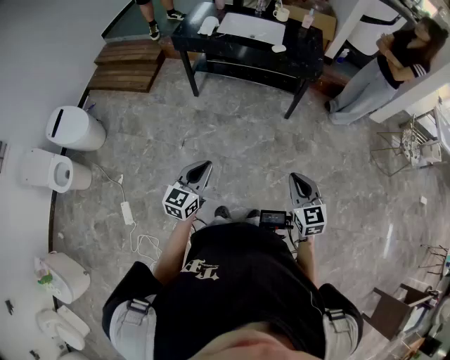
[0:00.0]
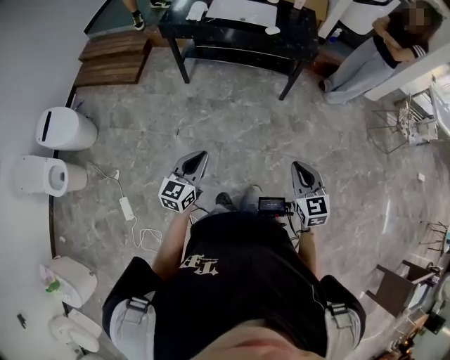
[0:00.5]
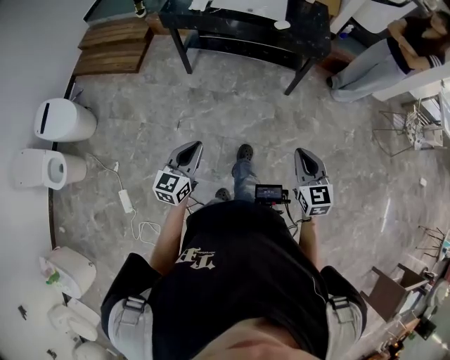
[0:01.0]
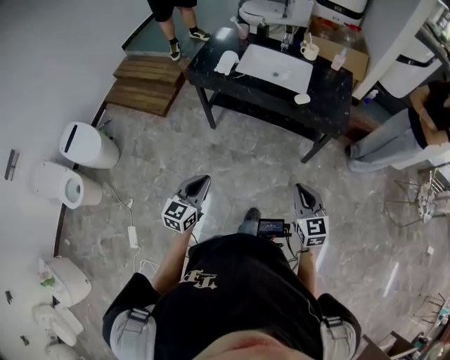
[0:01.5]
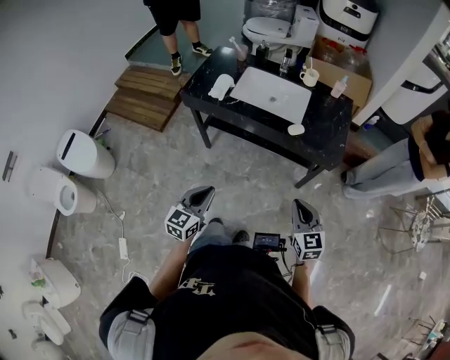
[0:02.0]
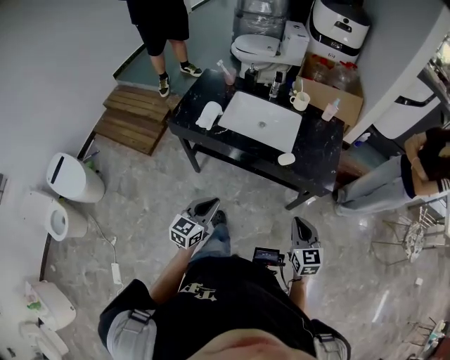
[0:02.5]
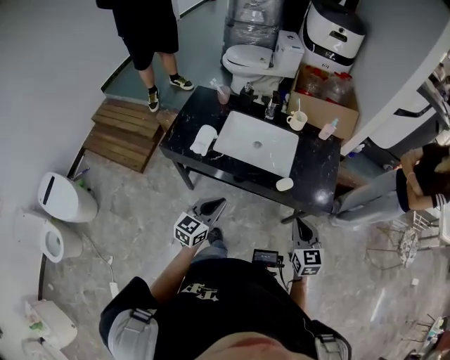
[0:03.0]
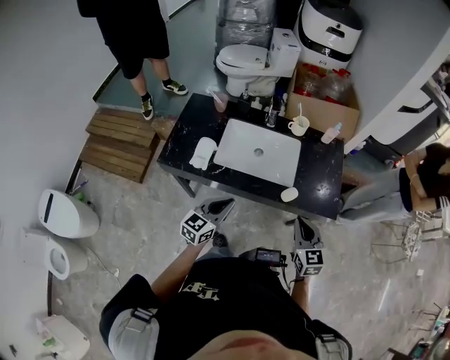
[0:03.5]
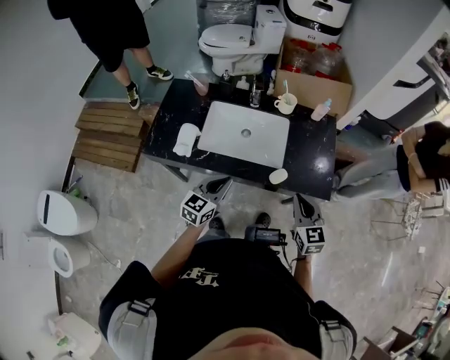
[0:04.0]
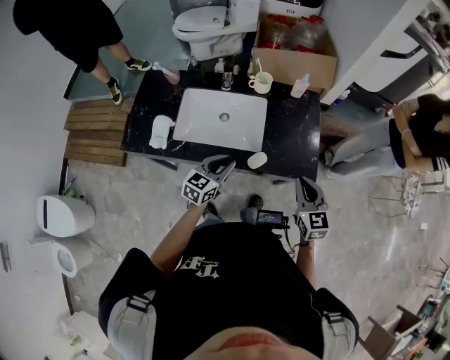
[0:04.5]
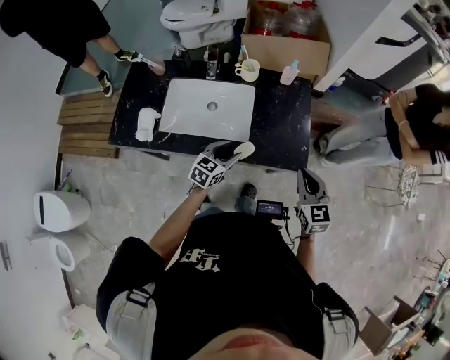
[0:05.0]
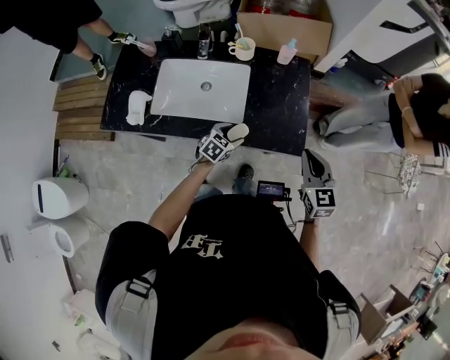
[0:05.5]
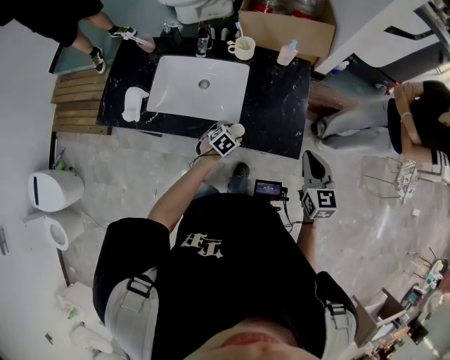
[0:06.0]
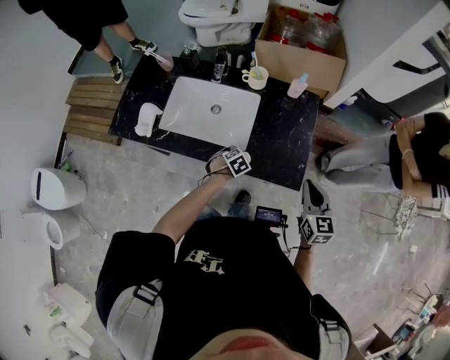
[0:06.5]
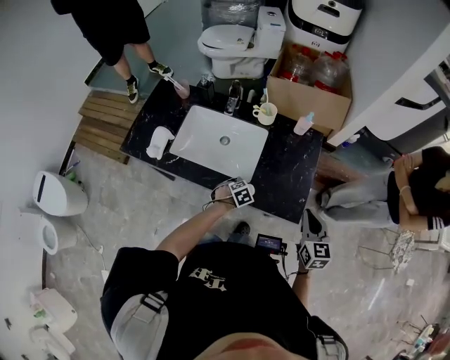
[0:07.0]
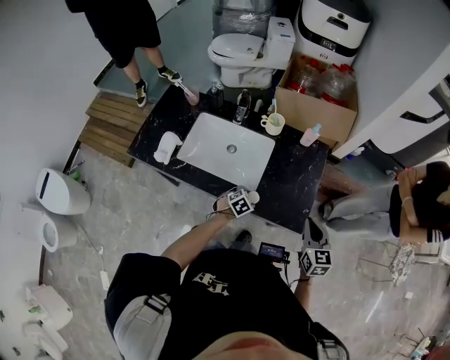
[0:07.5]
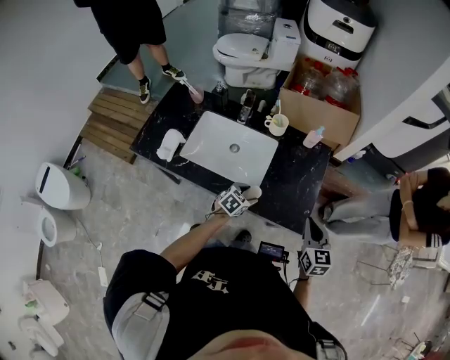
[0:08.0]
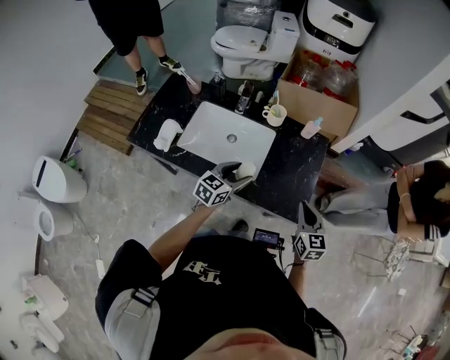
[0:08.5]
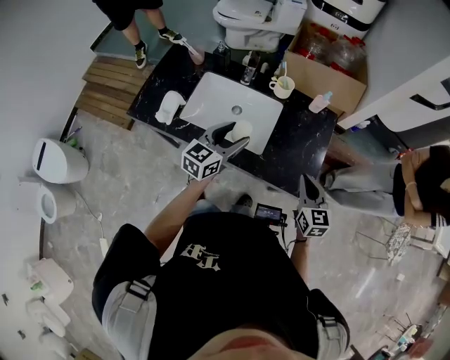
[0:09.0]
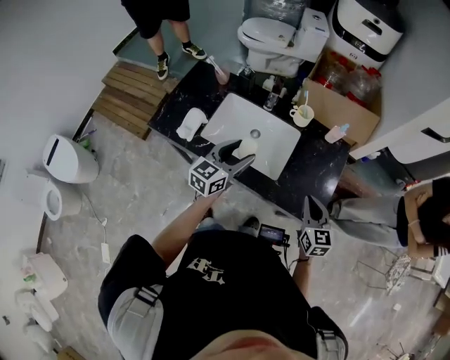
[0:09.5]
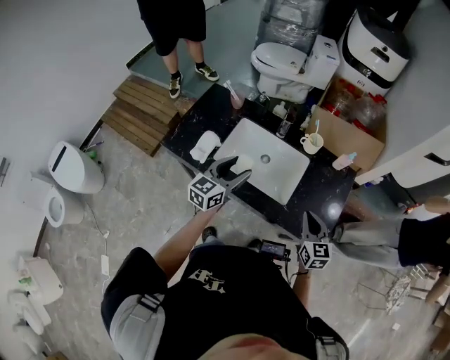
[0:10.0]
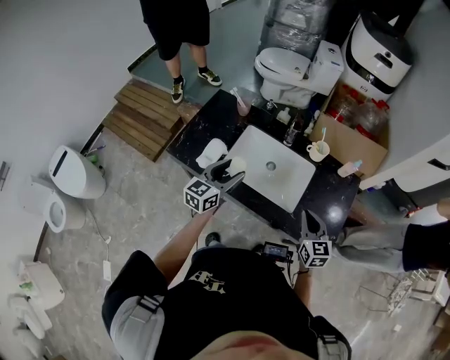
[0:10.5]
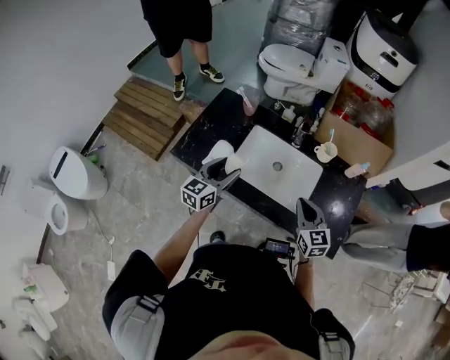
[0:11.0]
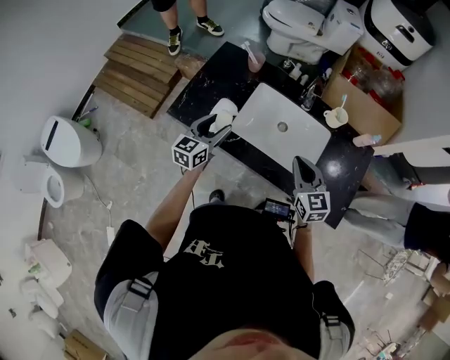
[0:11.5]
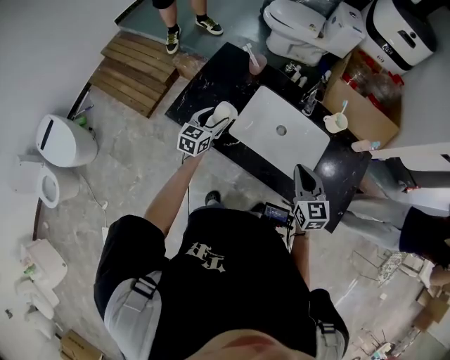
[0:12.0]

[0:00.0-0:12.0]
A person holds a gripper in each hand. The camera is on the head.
0:00.0 to 0:02.0: Both grippers travel together forward, roughly 40 cm.
0:02.0 to 0:04.0: Both grippers travel together forward, roughly 35 cm. The left gripper rotates about 20 degrees.
0:04.0 to 0:06.0: The right gripper goes some 25 cm to the right and forward; the left gripper is displaced downward, to the right and forward by approximately 35 cm, angles its fingers downward, by about 40 degrees, and opens.
0:06.0 to 0:08.0: The left gripper shifts approximately 5 cm upward.
0:08.0 to 0:10.0: The left gripper heads upward and to the left, covering roughly 35 cm, and points its fingers some 40 degrees further upward, while the right gripper goes approximately 15 cm to the left.
0:10.0 to 0:12.0: The right gripper is displaced to the left and forward by about 20 cm. Meanwhile the left gripper shifts about 30 cm to the left, downward and forward.

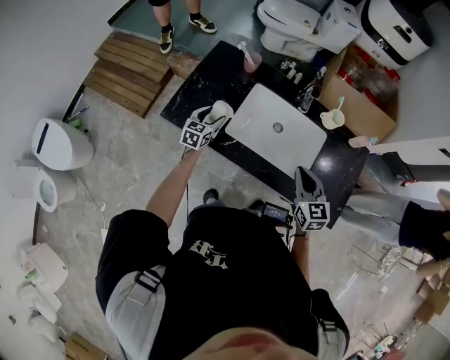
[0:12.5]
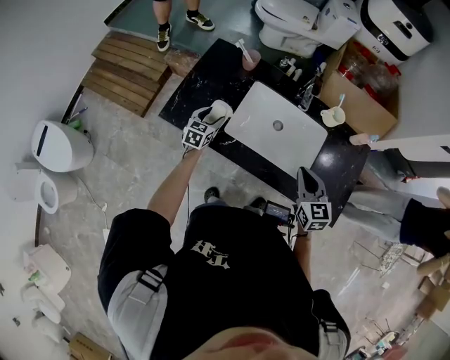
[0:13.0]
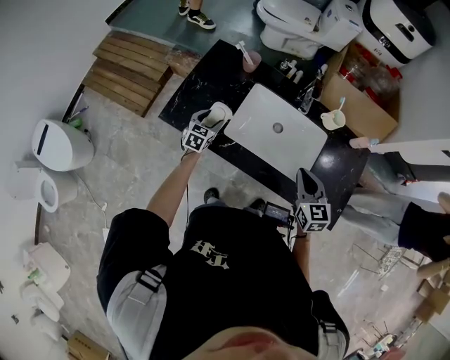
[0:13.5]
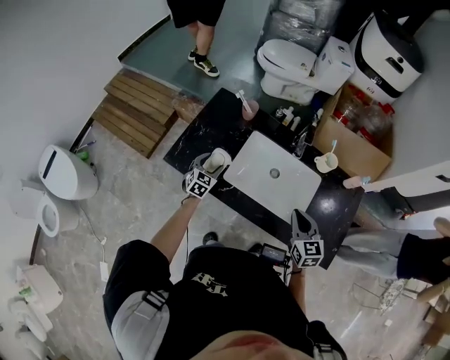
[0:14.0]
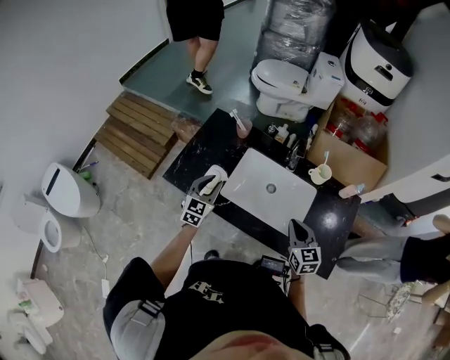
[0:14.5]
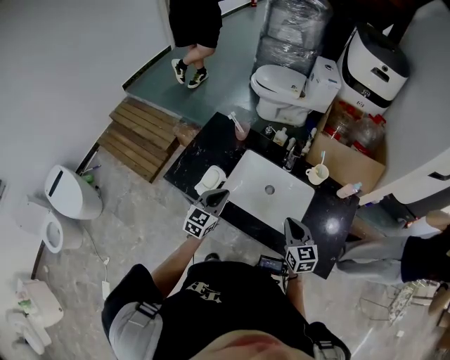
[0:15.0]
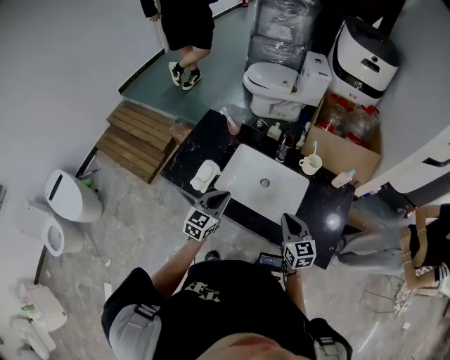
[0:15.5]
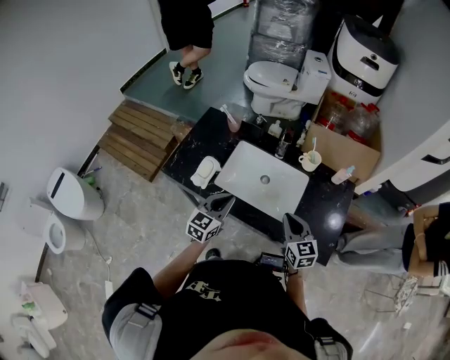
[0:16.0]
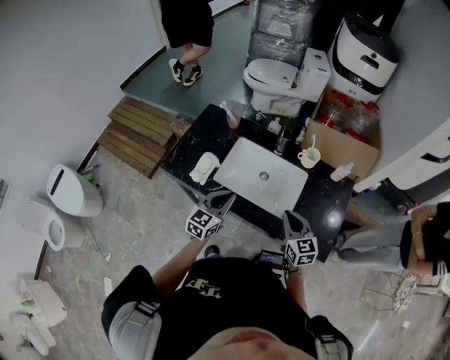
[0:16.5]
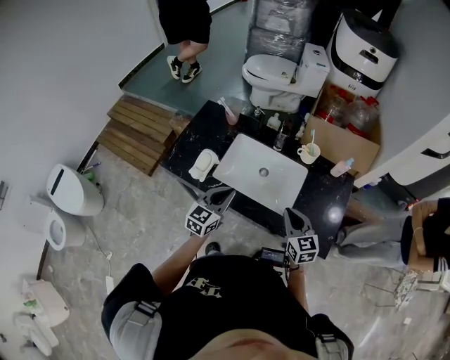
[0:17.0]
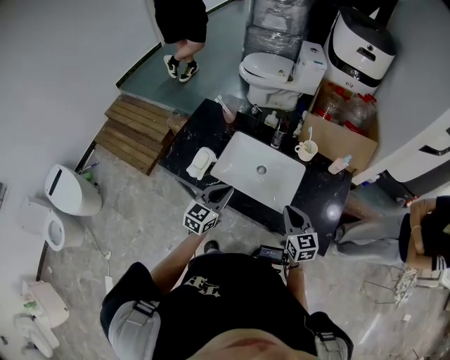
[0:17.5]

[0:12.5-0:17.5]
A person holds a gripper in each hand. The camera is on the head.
0:12.5 to 0:15.0: The left gripper goes about 20 cm upward, to the right and backward, and closes.
0:15.0 to 0:17.5: The left gripper shifts some 10 cm to the right and backward, while the right gripper is displaced backward by some 5 cm.

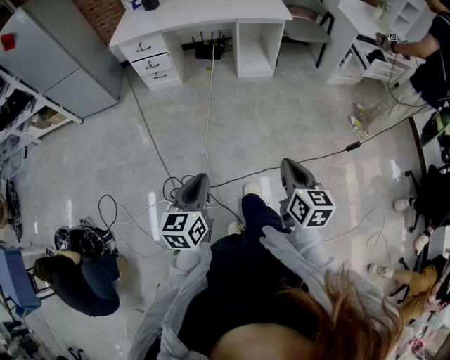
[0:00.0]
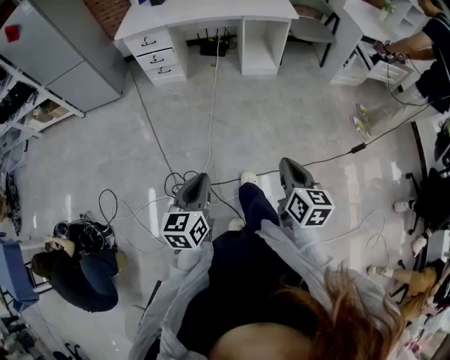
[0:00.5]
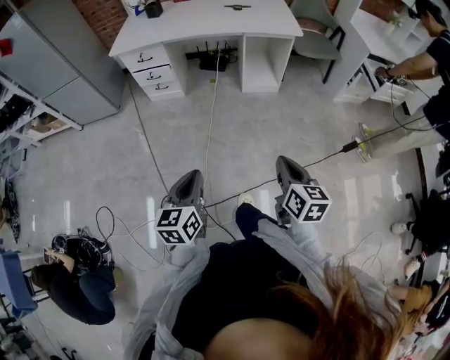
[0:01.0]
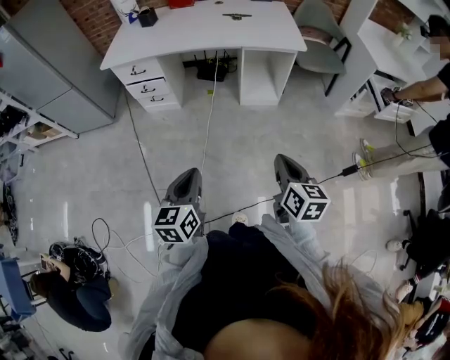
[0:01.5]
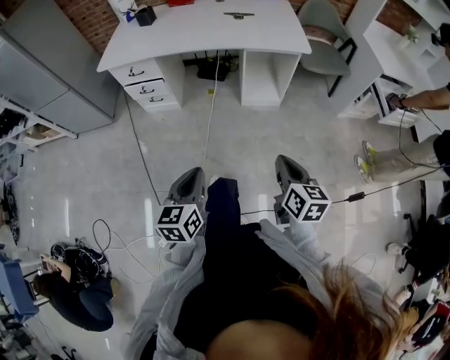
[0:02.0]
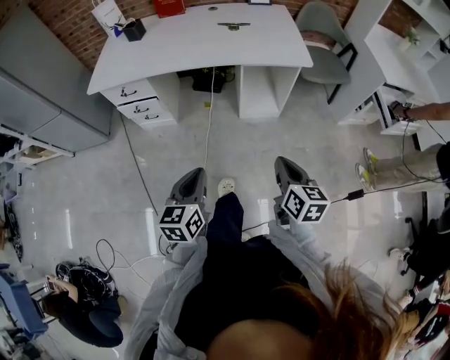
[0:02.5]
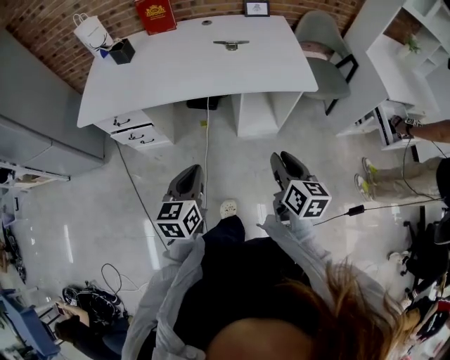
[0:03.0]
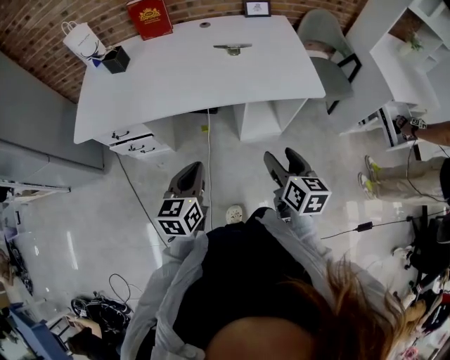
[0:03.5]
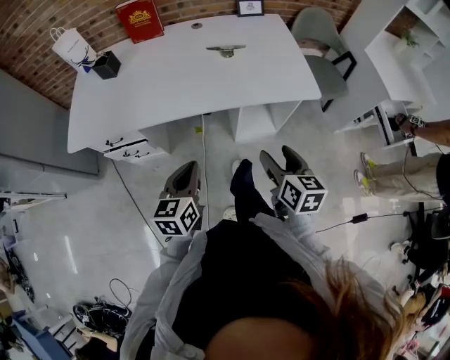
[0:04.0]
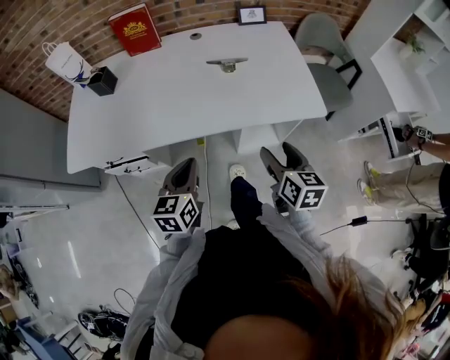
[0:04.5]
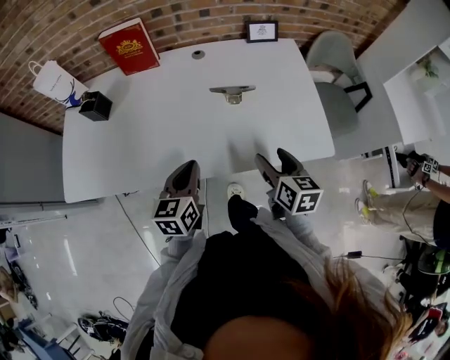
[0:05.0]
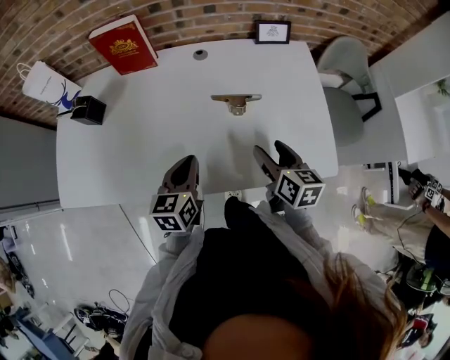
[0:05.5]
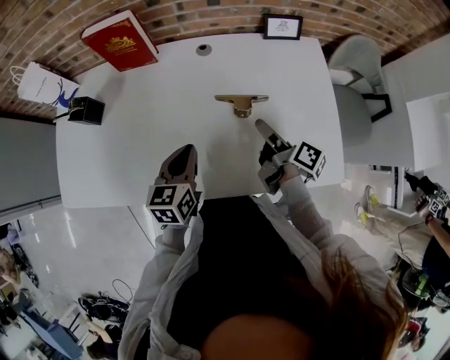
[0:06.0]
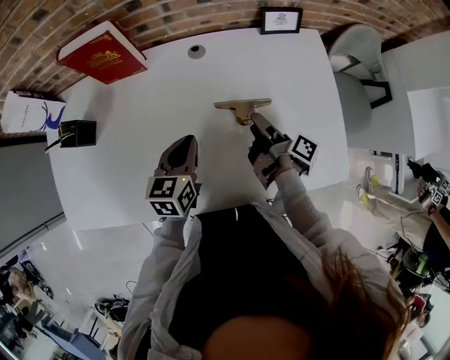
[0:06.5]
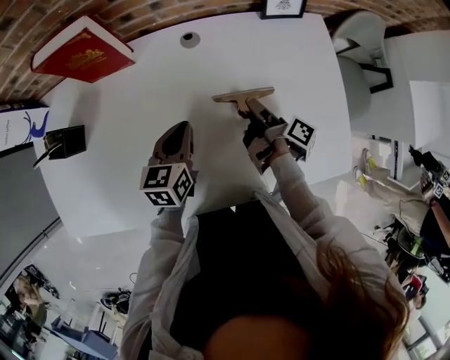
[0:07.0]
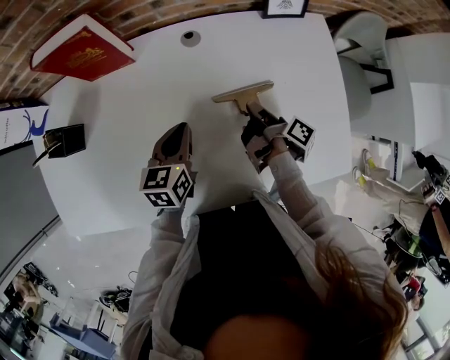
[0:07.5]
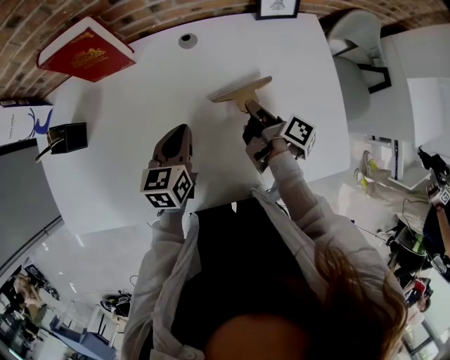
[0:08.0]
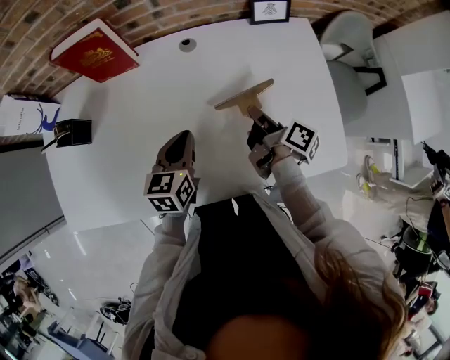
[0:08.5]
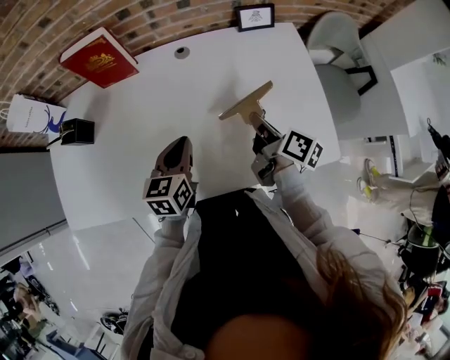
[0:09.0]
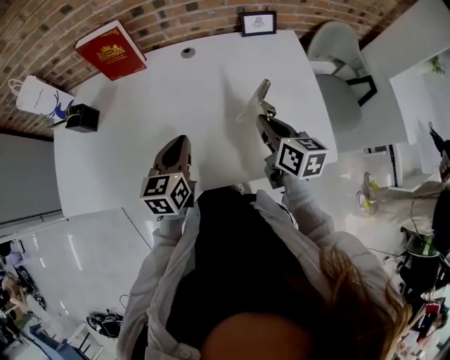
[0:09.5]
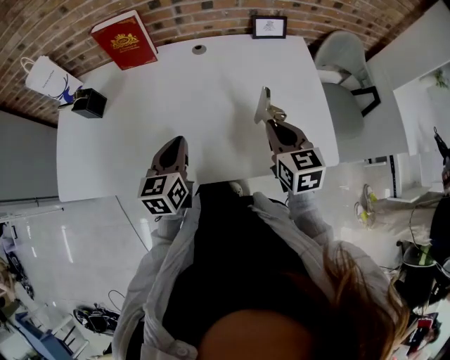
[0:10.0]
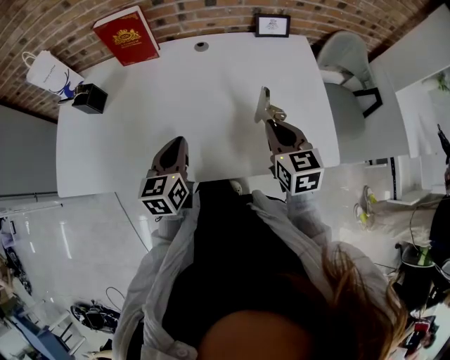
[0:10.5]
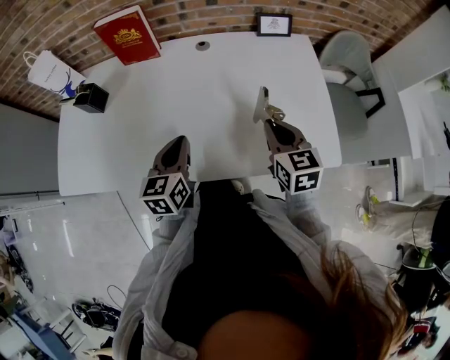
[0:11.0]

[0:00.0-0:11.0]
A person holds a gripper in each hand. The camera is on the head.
0:00.0 to 0:02.0: Both grippers travel together forward, some 30 cm.
0:02.0 to 0:03.5: Both grippers travel together forward, roughly 35 cm. The right gripper opens its fingers.
0:03.5 to 0:05.5: The grippers both shift forward by about 35 cm.
0:05.5 to 0:07.5: The left gripper heads forward, covering about 15 cm; the right gripper moves forward and downward, roughly 20 cm, twists some 70 degrees clockwise, seen from behind, and closes up.
0:07.5 to 0:09.0: The left gripper is displaced backward and upward by about 10 cm. Meanwhile the right gripper is displaced upward and backward by approximately 15 cm, and rotates some 30 degrees.
0:09.0 to 0:11.0: The two grippers go approximately 5 cm backward. The right gripper rolls counterclockwise, seen from behind, by roughly 60 degrees.
